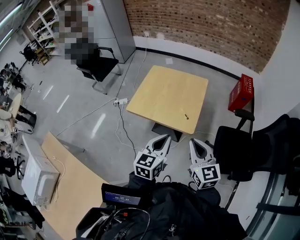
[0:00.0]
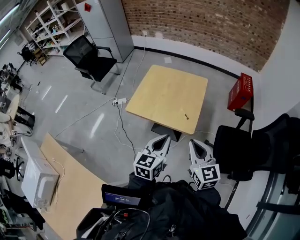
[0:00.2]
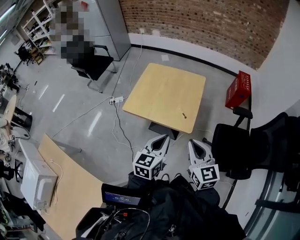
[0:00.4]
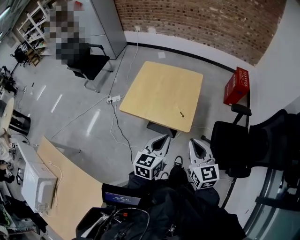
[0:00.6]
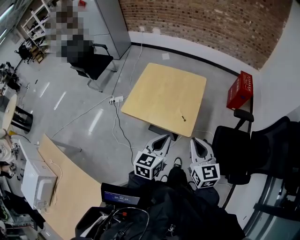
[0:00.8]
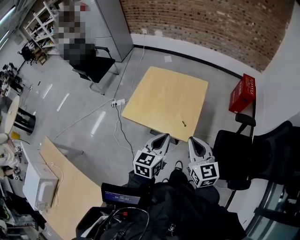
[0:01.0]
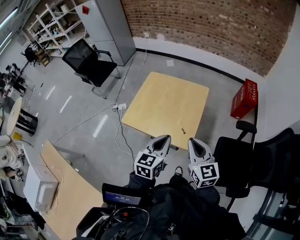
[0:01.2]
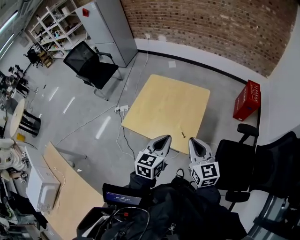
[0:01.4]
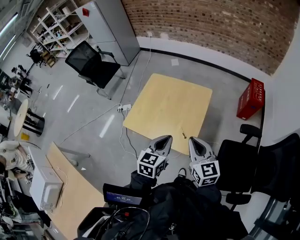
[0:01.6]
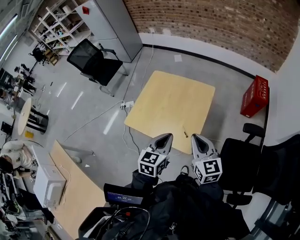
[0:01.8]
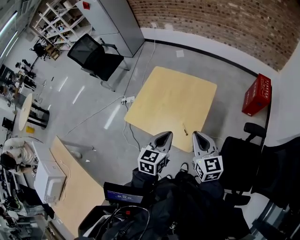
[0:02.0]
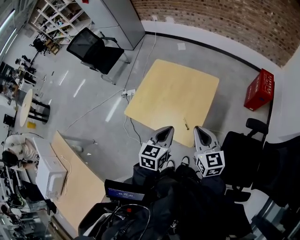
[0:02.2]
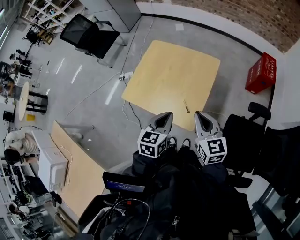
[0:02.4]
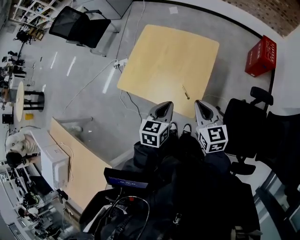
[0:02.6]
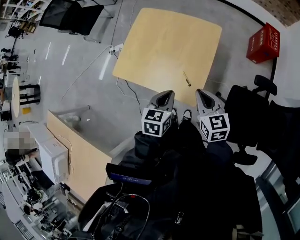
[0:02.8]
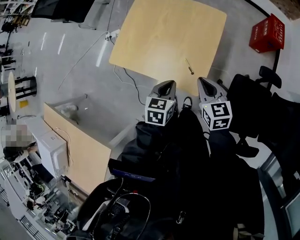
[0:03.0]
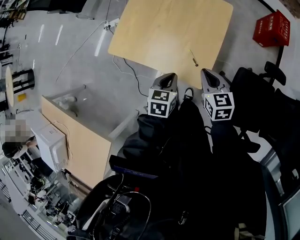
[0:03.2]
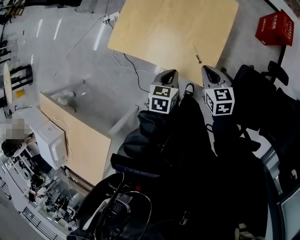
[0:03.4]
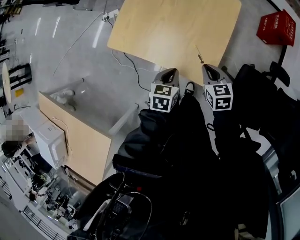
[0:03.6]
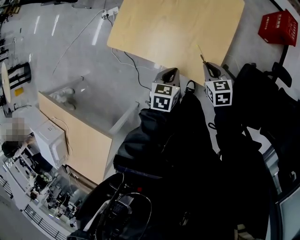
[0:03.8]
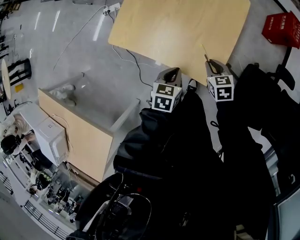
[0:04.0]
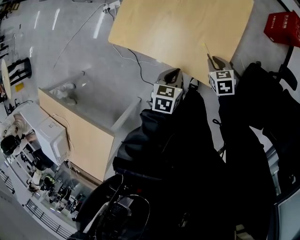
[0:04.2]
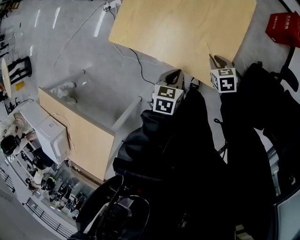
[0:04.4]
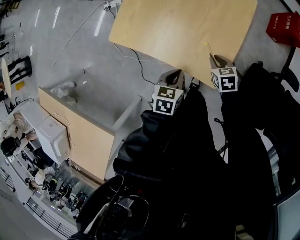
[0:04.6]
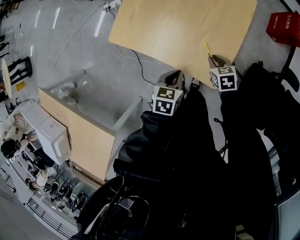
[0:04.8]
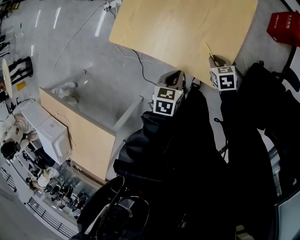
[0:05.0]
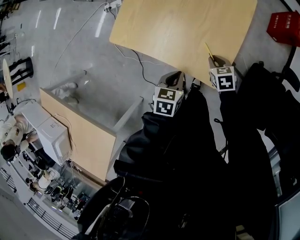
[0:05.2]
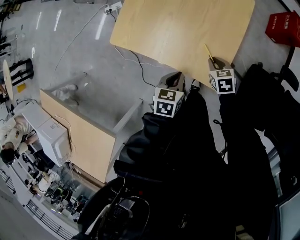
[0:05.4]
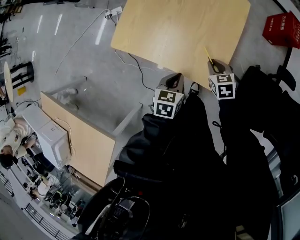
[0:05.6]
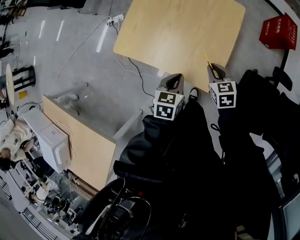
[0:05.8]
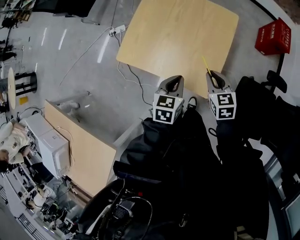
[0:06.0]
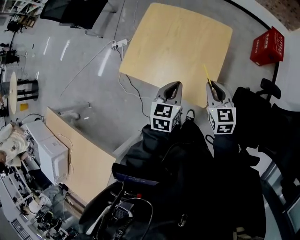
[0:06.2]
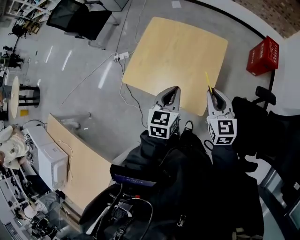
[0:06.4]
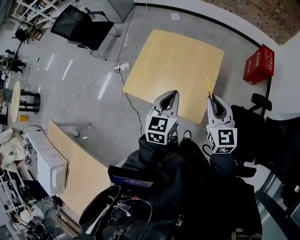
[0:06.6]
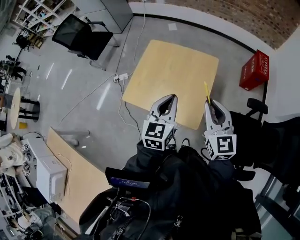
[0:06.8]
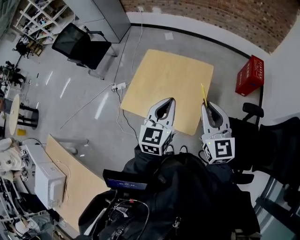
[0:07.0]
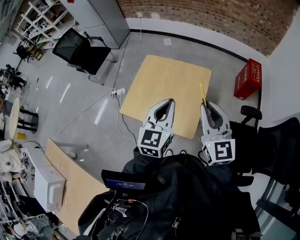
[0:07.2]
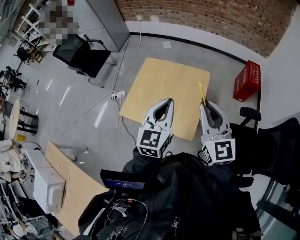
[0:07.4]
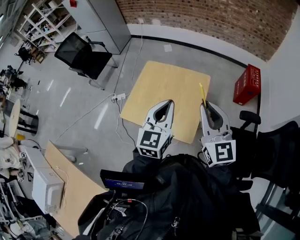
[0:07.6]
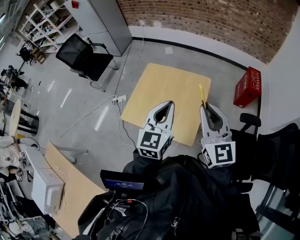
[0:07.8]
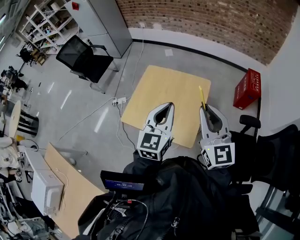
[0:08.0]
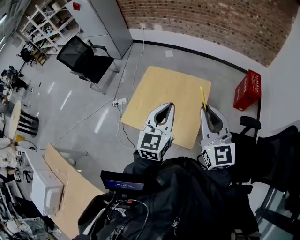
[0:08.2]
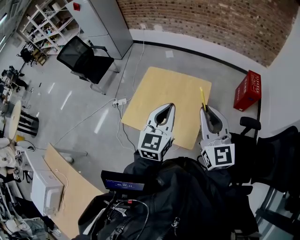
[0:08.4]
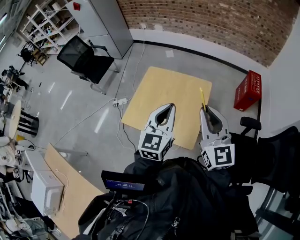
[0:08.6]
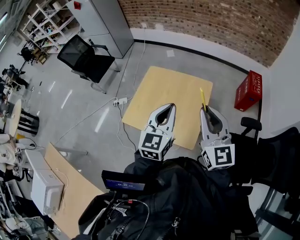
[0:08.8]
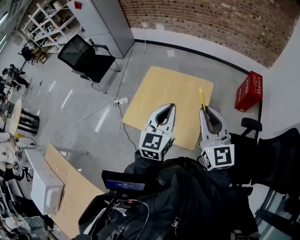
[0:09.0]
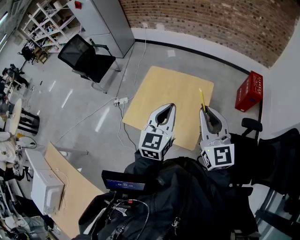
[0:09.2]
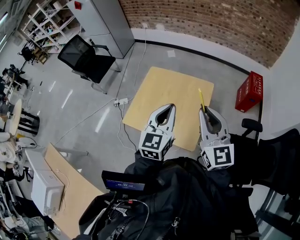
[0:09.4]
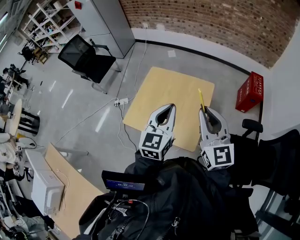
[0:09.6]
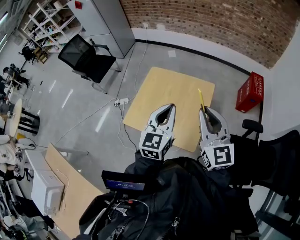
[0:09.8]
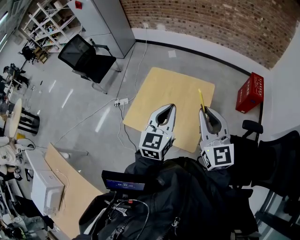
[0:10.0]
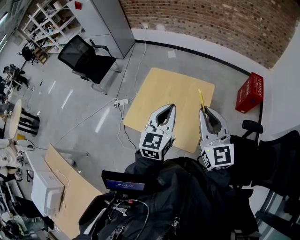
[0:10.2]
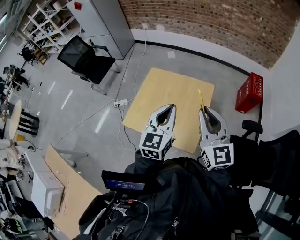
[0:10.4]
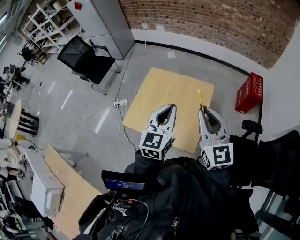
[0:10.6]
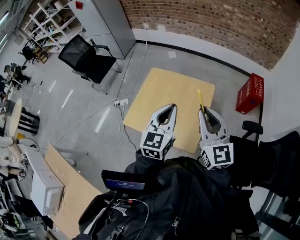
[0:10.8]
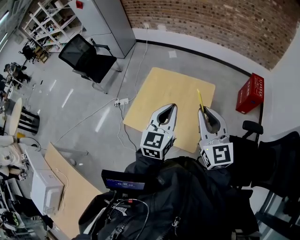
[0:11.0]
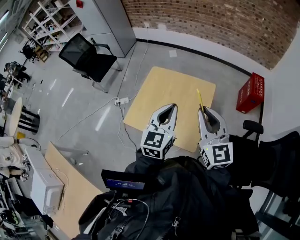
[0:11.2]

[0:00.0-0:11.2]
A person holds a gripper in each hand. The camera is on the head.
0:00.0 to 0:01.6: Both grippers move forward, roughly 20 cm.
0:01.6 to 0:03.2: The grippers both shift downward by some 20 cm. The left gripper changes its angle by roughly 20 degrees, while the right gripper rotates about 30 degrees.
0:03.2 to 0:04.8: The right gripper is displaced downward by roughly 20 cm, and turns by roughly 20 degrees; the left gripper is displaced downward by about 10 cm.
0:04.8 to 0:06.4: Both grippers move upward, about 30 cm. The right gripper tips its fingers upward by roughly 40 degrees. The left gripper turns by about 30 degrees.
0:06.4 to 0:08.0: The grippers both shift upward by roughly 20 cm. The left gripper turns by approximately 20 degrees, while the right gripper swivels approximately 30 degrees.
0:08.0 to 0:11.2: The grippers stay close to where they were, moving slightly.

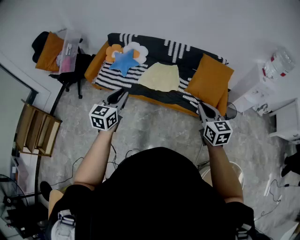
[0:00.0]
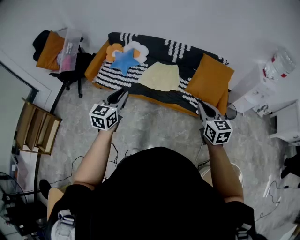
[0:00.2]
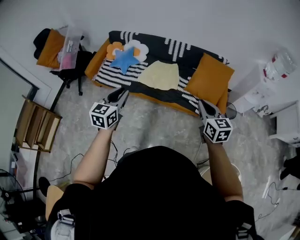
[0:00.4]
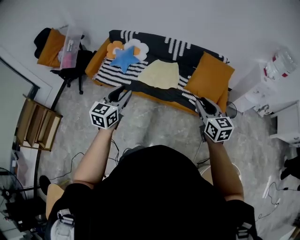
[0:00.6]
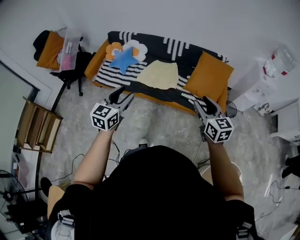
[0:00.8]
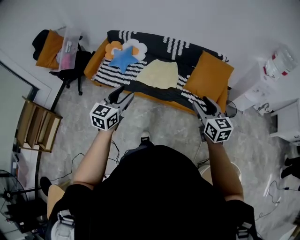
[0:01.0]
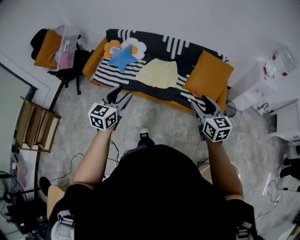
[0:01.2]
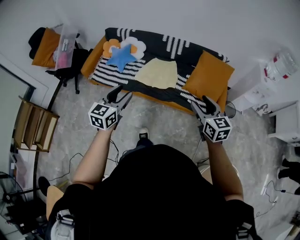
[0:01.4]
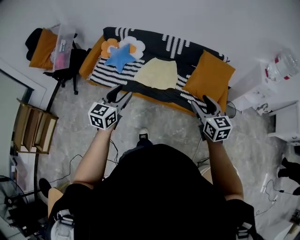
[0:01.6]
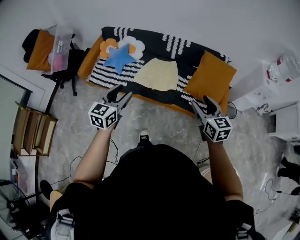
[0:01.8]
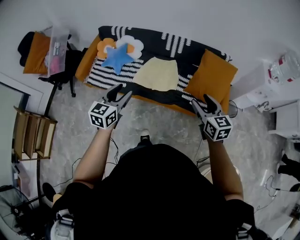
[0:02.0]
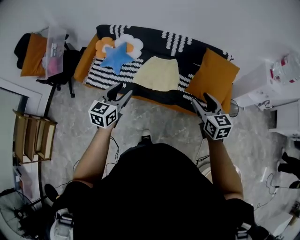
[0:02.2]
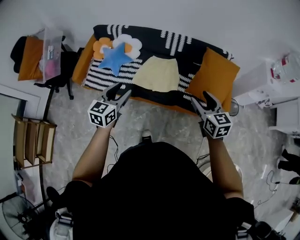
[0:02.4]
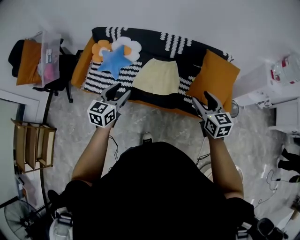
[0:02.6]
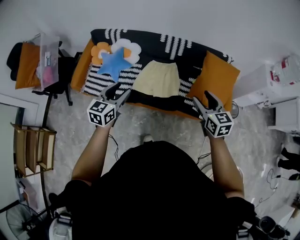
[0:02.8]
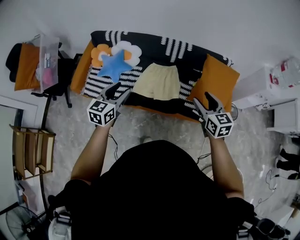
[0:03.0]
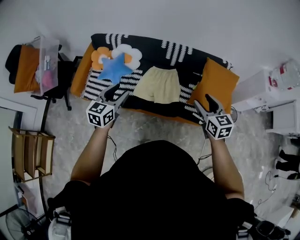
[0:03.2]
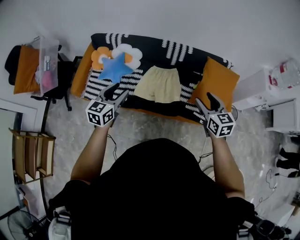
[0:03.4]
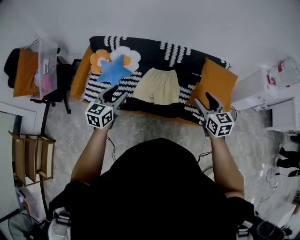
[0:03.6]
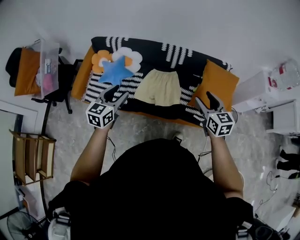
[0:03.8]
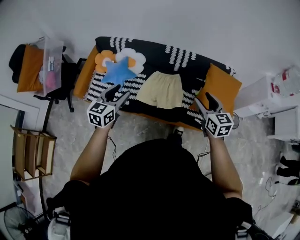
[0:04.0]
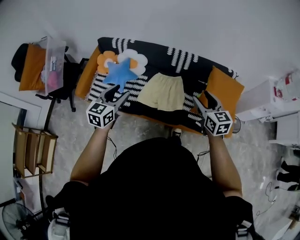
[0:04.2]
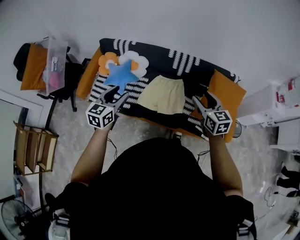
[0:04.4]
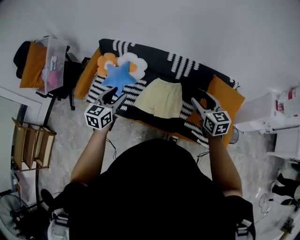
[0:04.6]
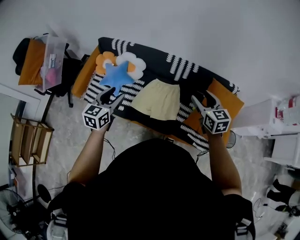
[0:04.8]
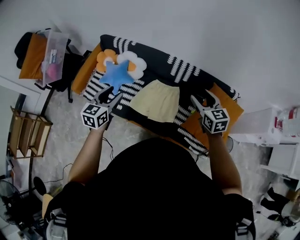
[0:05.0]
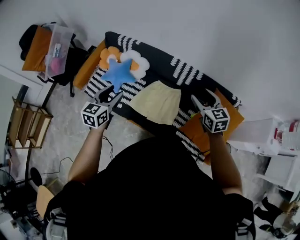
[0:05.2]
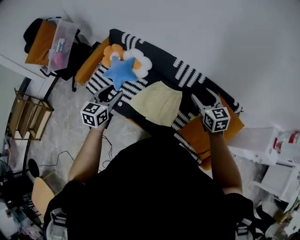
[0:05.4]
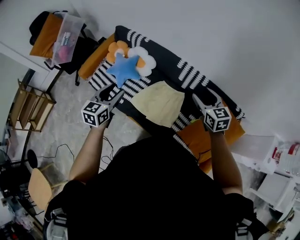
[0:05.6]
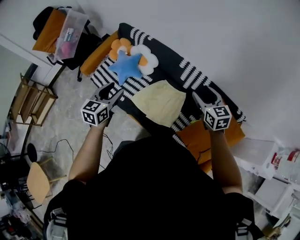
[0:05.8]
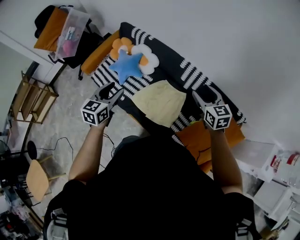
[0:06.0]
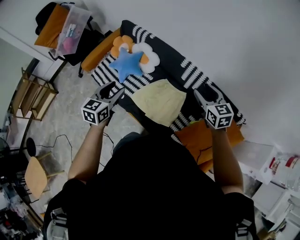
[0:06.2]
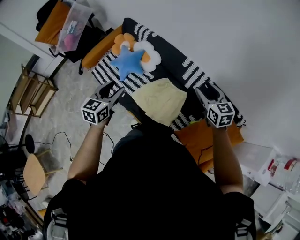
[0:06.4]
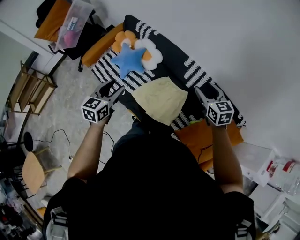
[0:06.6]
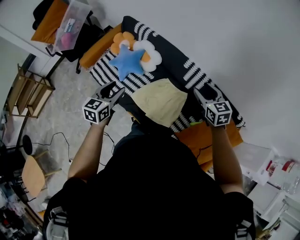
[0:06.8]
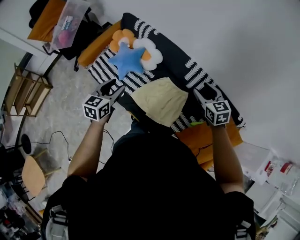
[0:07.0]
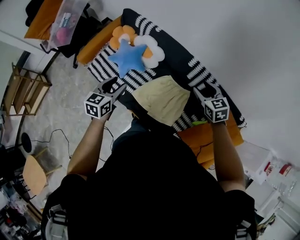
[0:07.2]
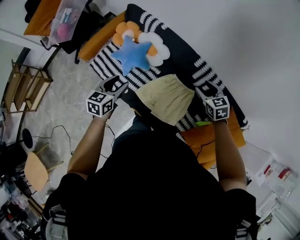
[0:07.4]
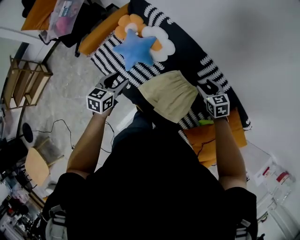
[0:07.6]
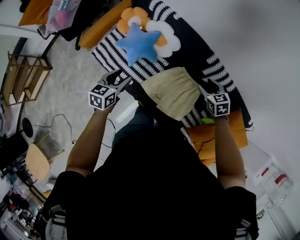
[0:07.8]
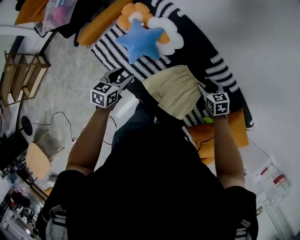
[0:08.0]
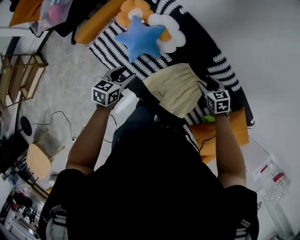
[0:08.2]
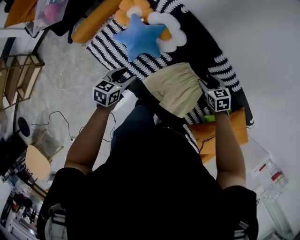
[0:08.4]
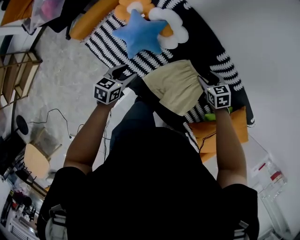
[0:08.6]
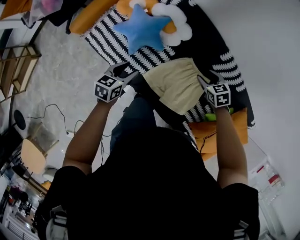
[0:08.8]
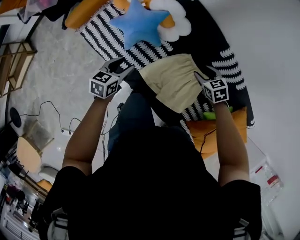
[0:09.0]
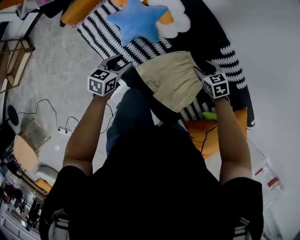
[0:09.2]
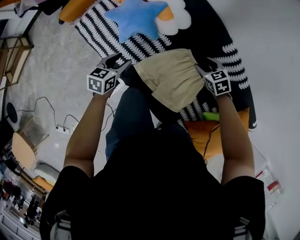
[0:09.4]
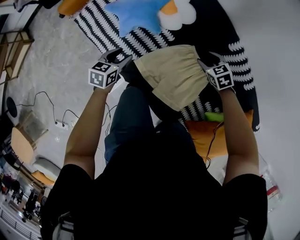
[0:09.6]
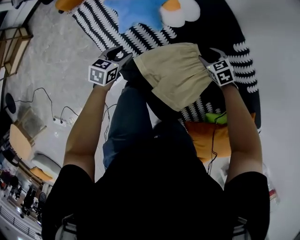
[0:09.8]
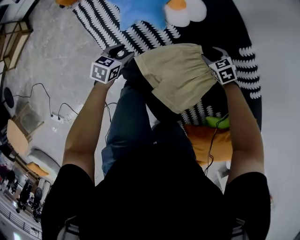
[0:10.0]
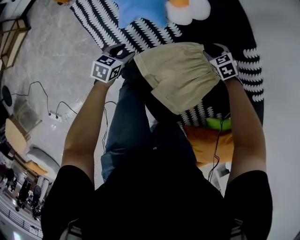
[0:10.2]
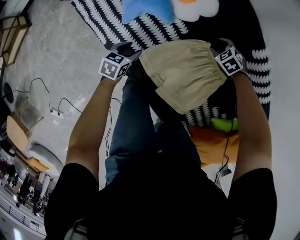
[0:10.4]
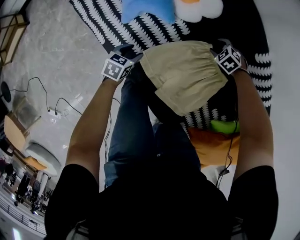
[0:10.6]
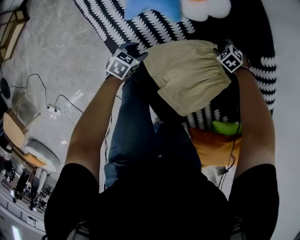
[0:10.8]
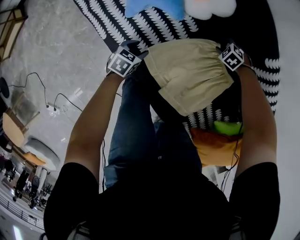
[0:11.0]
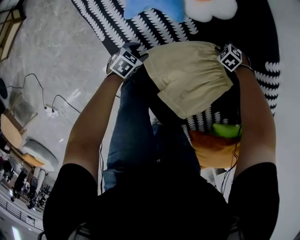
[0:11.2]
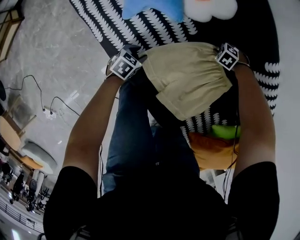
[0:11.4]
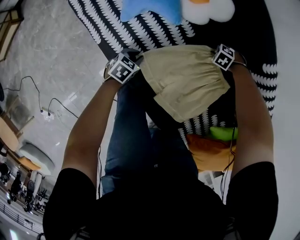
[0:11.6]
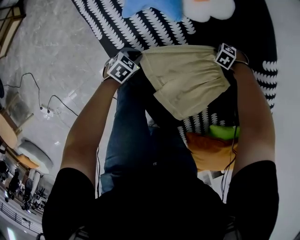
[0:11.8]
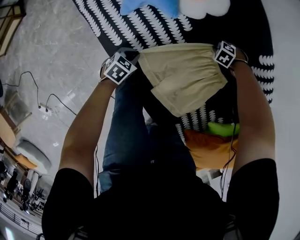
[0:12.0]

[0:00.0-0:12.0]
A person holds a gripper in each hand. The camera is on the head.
0:00.0 to 0:01.6: The grippers both shift forward by about 5 cm. The left gripper opens its fingers. Meanwhile the right gripper opens its fingers.
0:01.6 to 0:03.0: The two grippers go roughly 25 cm forward and to the left.
0:03.0 to 0:04.4: The right gripper travels forward by roughly 10 cm; the left gripper travels forward by some 5 cm.
0:04.4 to 0:06.0: The right gripper travels forward and to the right by roughly 25 cm, and swivels roughly 30 degrees. Meanwhile the left gripper travels to the right and forward by approximately 10 cm, and changes its angle by about 20 degrees.
0:06.0 to 0:07.6: The two grippers go some 25 cm downward, forward and to the left. The right gripper changes its angle by roughly 30 degrees.
0:07.6 to 0:09.0: The left gripper shifts some 20 cm downward. Meanwhile the right gripper is displaced downward and to the left by roughly 20 cm.
0:09.0 to 0:10.4: Both grippers travel together downward, roughly 25 cm. The right gripper swivels about 30 degrees.
0:10.4 to 0:12.0: Both grippers travel together downward, approximately 10 cm. The left gripper closes its fingers; the right gripper swivels about 30 degrees, and closes.
